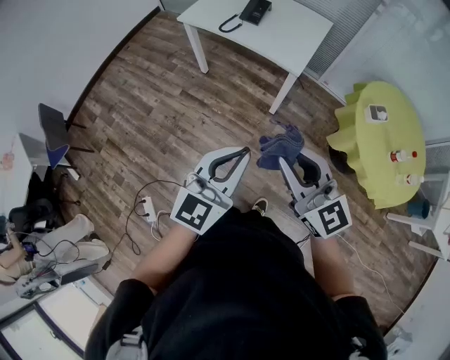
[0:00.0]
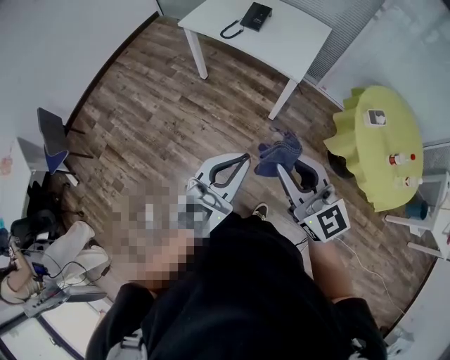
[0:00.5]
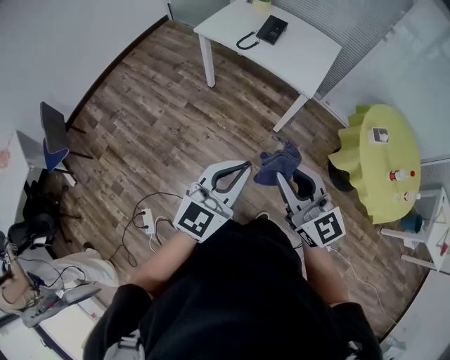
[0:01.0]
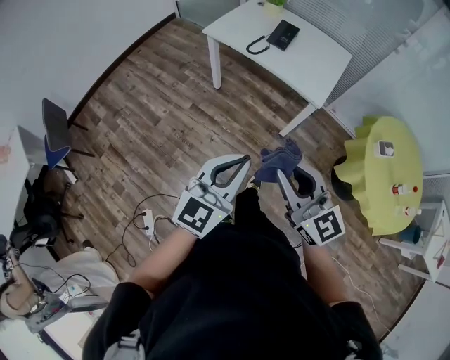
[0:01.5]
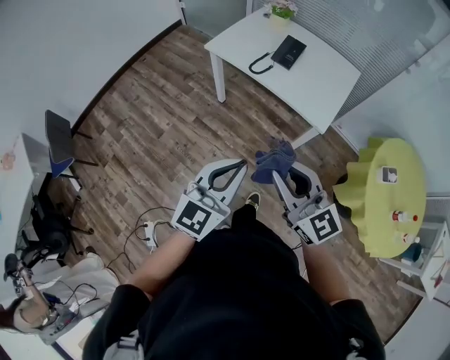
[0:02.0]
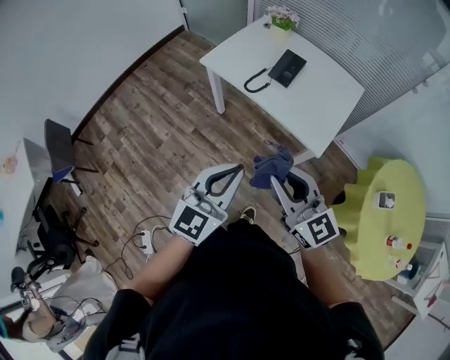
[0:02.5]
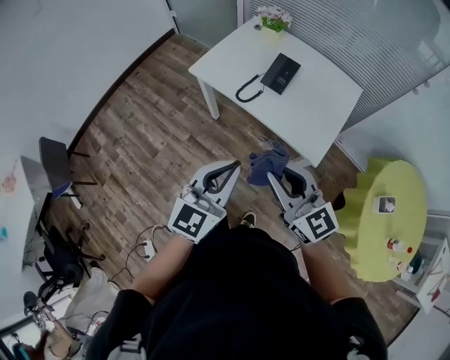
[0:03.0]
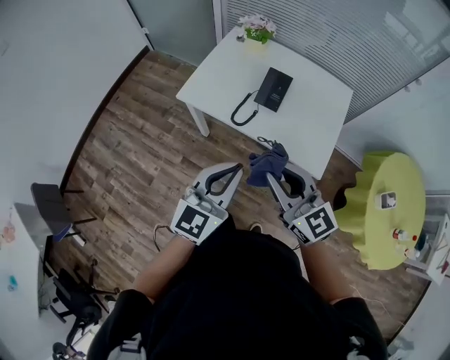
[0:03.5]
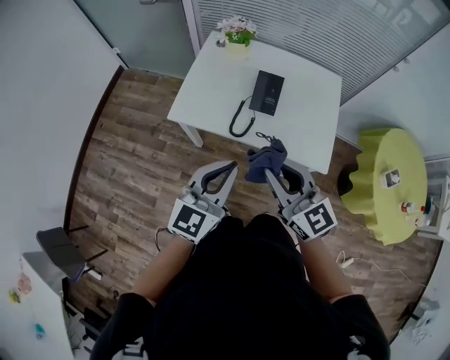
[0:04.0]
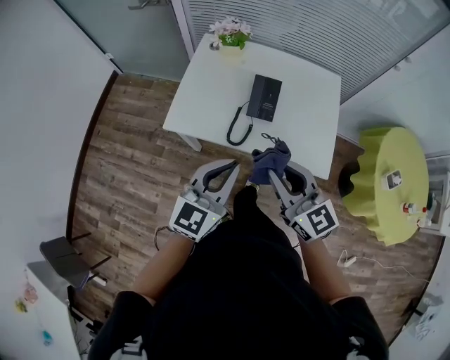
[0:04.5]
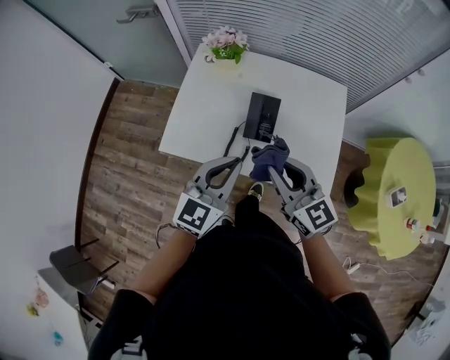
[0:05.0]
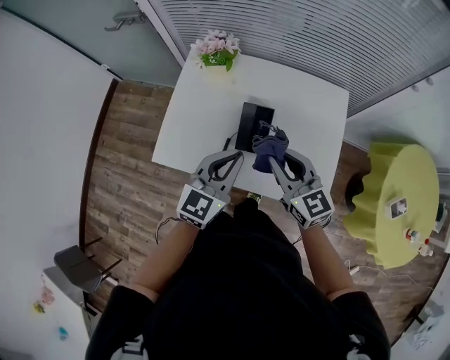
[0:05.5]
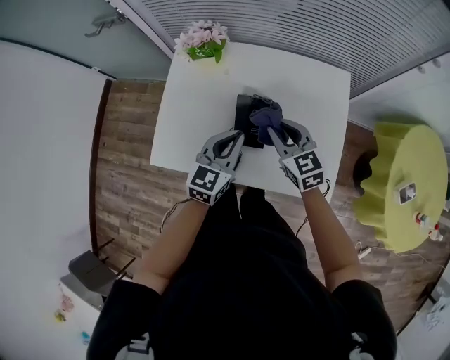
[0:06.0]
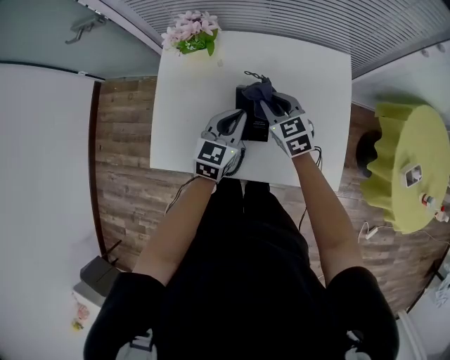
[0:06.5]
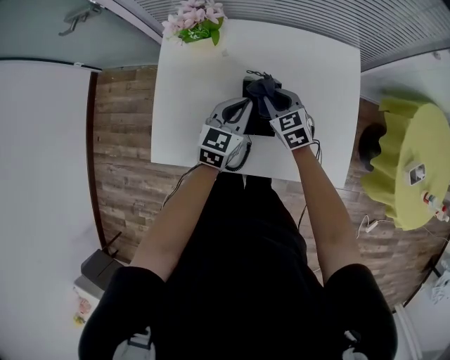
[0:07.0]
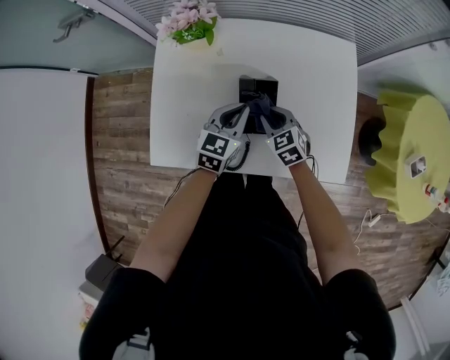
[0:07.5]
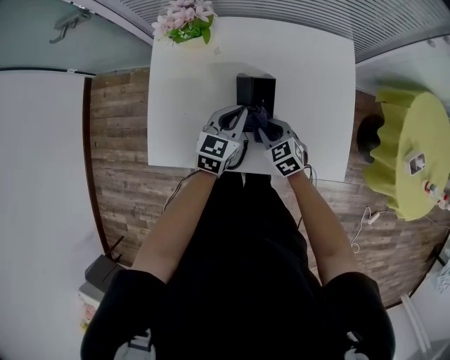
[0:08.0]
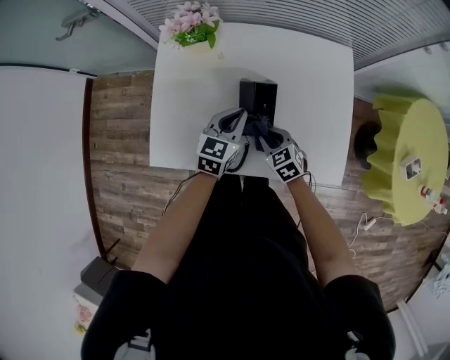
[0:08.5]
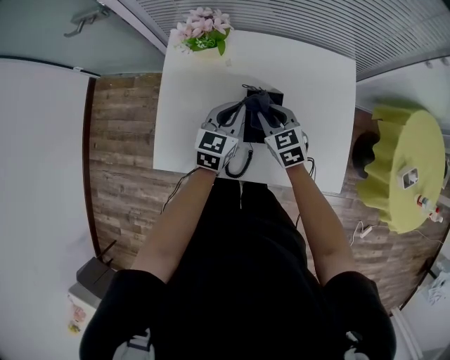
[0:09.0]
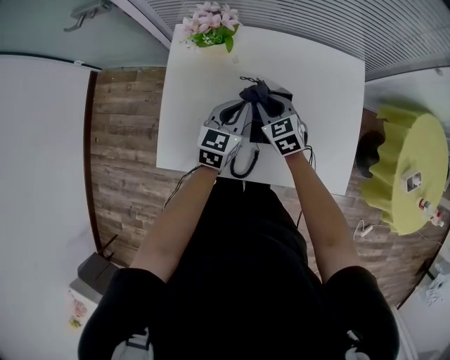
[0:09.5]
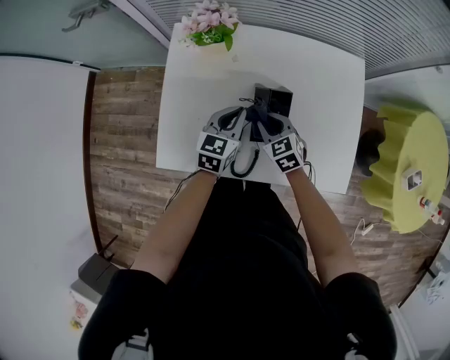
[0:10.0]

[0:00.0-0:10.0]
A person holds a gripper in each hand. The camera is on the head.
0:00.0 to 0:02.0: Both grippers travel together forward and to the left, approximately 20 cm.
0:02.0 to 0:04.0: Both grippers travel together forward, roughly 35 cm. The right gripper rotates about 20 degrees.
0:04.0 to 0:06.0: Both grippers move forward and downward, about 35 cm. The right gripper turns by about 20 degrees.
0:06.0 to 0:08.0: The right gripper shifts some 20 cm downward, and turns by approximately 20 degrees, while the left gripper goes roughly 10 cm downward.
0:08.0 to 0:10.0: The left gripper moves to the left, approximately 5 cm. The right gripper heads forward and to the left, covering some 10 cm.

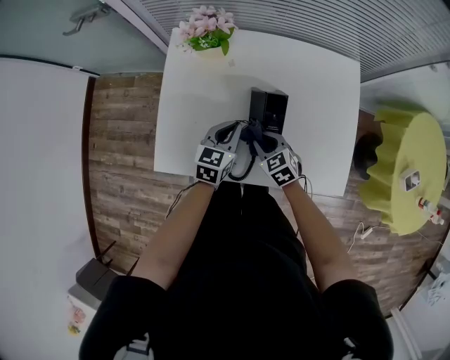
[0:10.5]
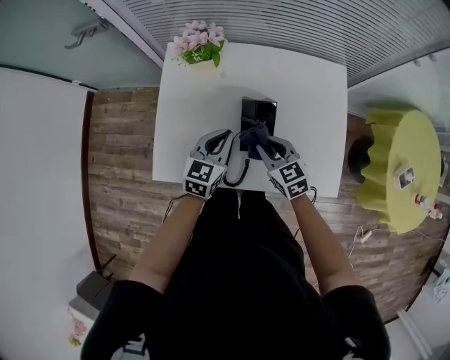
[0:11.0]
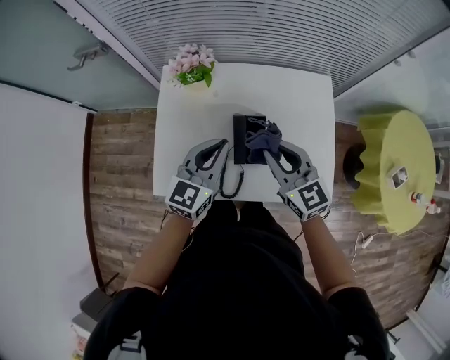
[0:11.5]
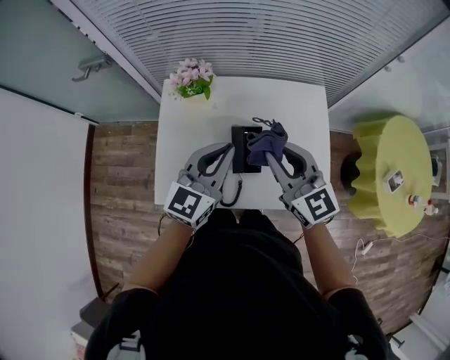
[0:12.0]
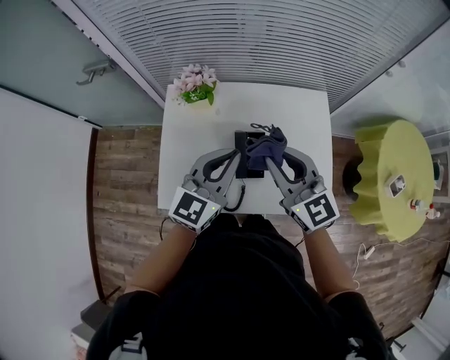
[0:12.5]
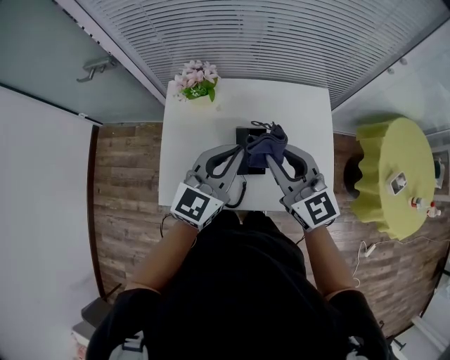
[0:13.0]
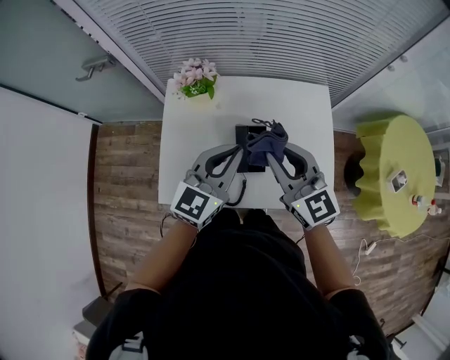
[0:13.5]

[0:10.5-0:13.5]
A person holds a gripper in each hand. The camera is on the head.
0:10.5 to 0:12.0: Both grippers travel together upward, some 30 cm. The left gripper turns by some 30 degrees, while the right gripper points its fingers some 40 degrees further upward.
0:12.0 to 0:13.5: The grippers move only a little.

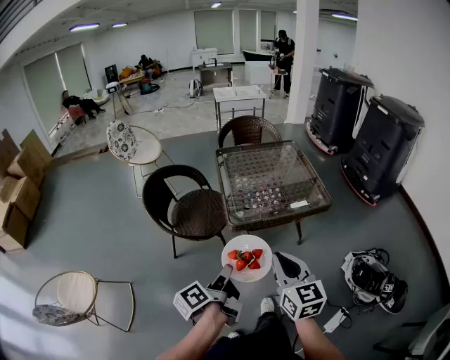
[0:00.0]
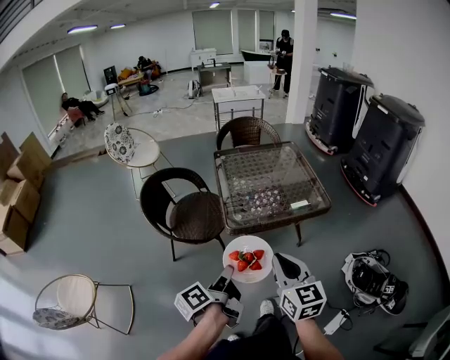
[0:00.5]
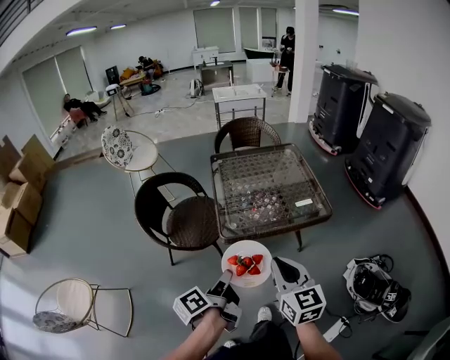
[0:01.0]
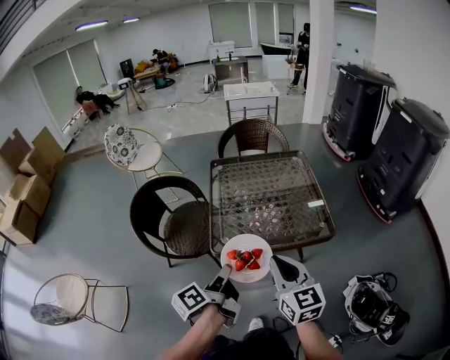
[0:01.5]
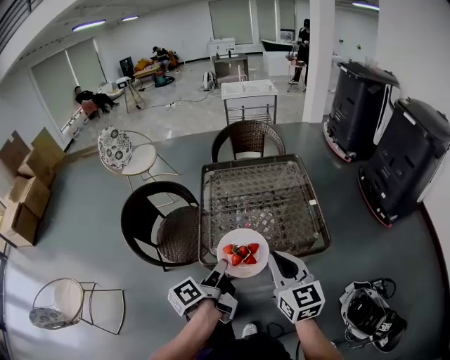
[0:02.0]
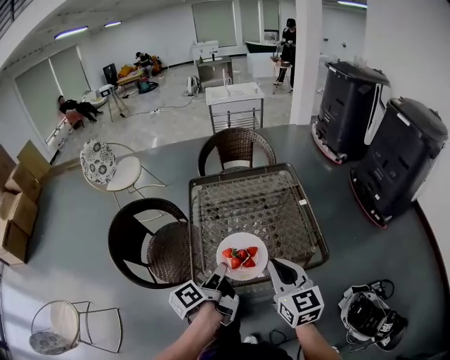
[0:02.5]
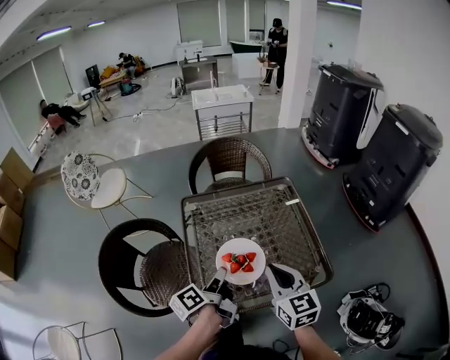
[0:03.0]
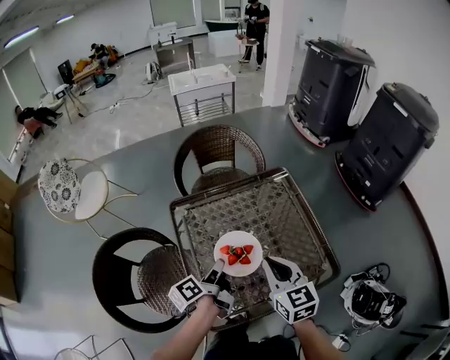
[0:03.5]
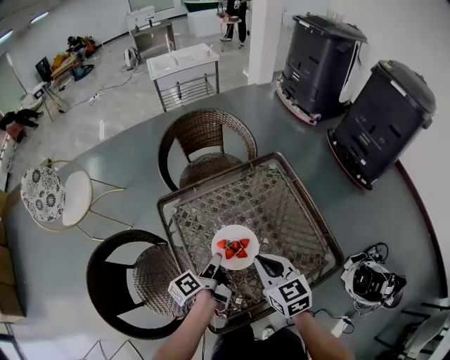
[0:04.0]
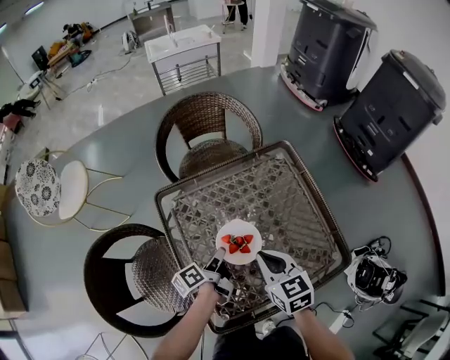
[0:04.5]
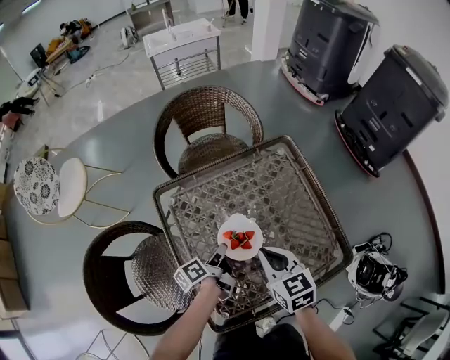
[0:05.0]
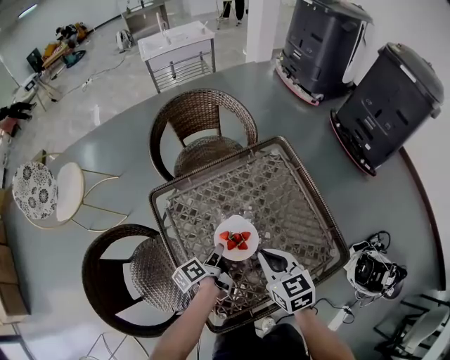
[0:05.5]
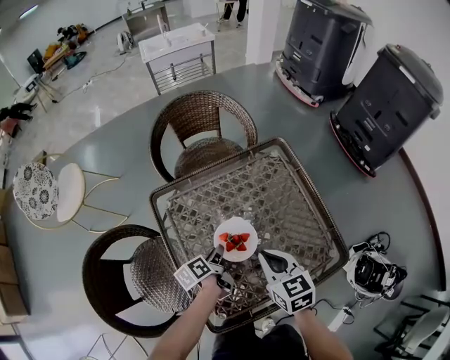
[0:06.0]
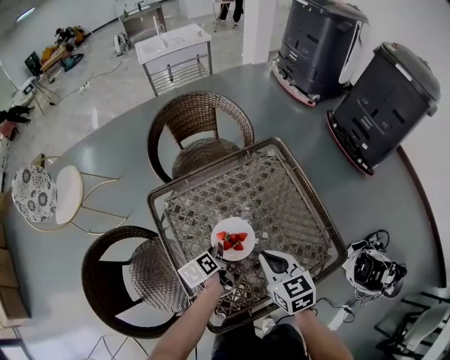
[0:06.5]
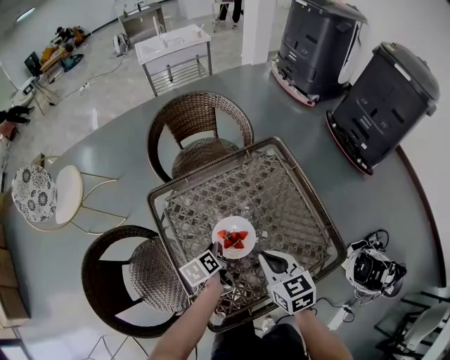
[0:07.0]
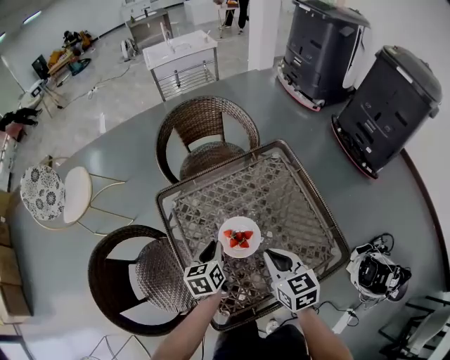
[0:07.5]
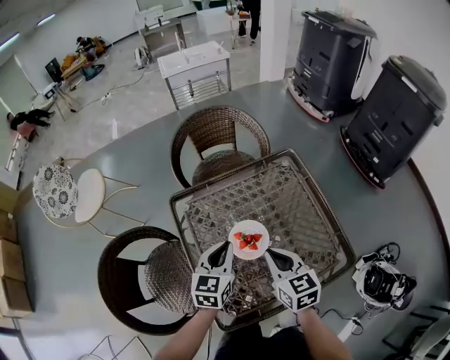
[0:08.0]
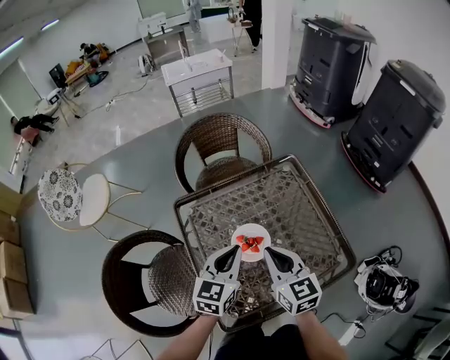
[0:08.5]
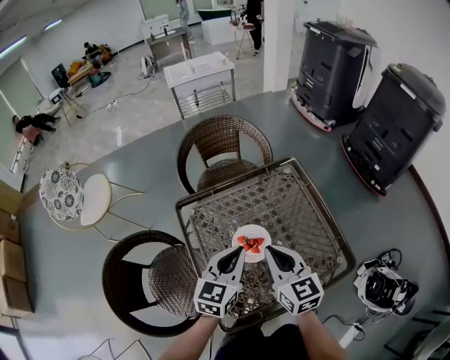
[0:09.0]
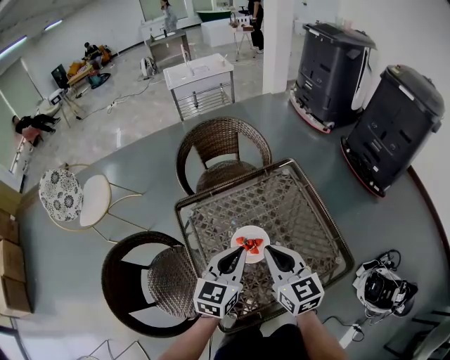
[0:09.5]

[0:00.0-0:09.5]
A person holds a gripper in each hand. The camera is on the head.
0:00.0 to 0:02.0: The grippers both shift forward and to the right by approximately 30 cm.
0:02.0 to 0:04.0: The grippers both shift forward and downward by some 35 cm. The left gripper swivels some 20 degrees. The right gripper swivels approximately 20 degrees.
0:04.0 to 0:05.5: The right gripper moves downward, approximately 5 cm, while the left gripper travels downward by about 10 cm.
0:05.5 to 0:07.5: The left gripper heads upward, covering some 5 cm, and twists some 50 degrees clockwise, seen from behind.
0:07.5 to 0:09.5: The right gripper moves upward, roughly 10 cm; the left gripper shifts approximately 15 cm upward, and turns by about 30 degrees.

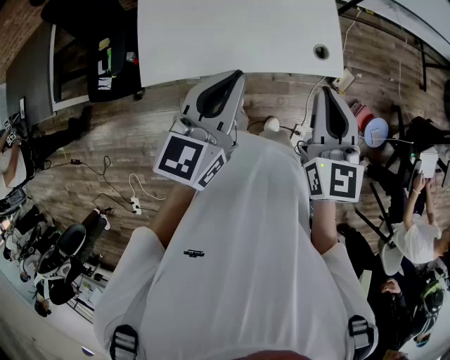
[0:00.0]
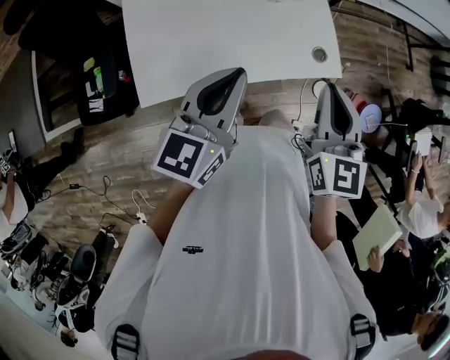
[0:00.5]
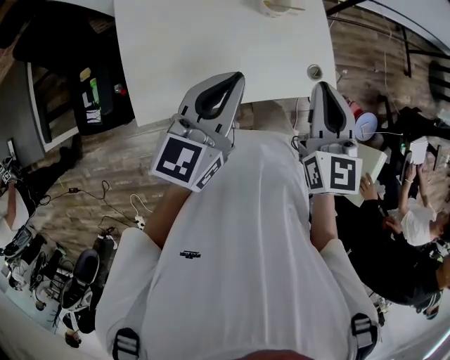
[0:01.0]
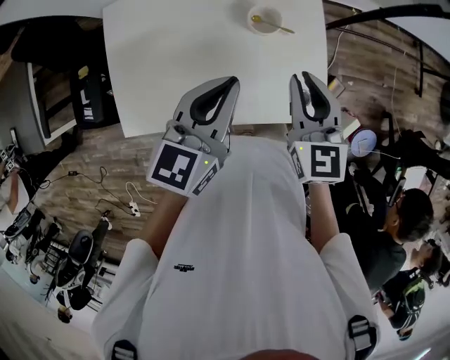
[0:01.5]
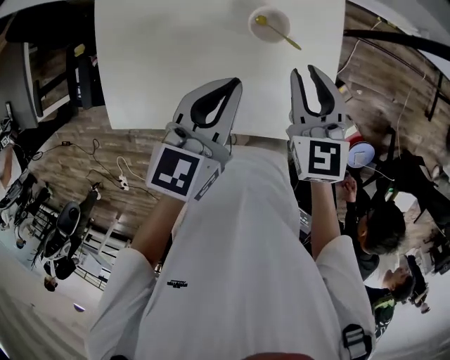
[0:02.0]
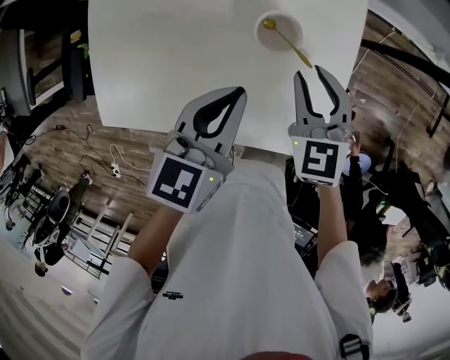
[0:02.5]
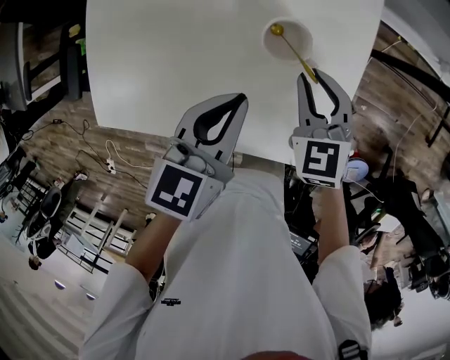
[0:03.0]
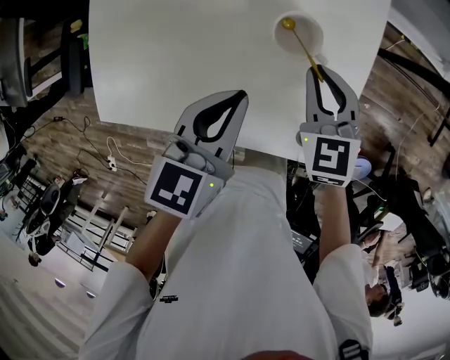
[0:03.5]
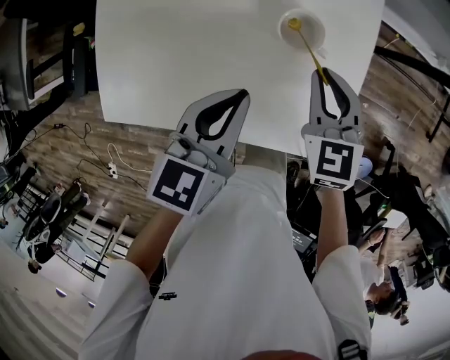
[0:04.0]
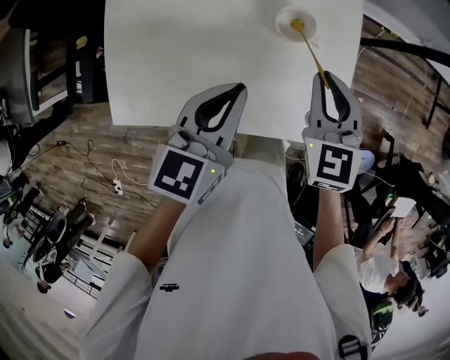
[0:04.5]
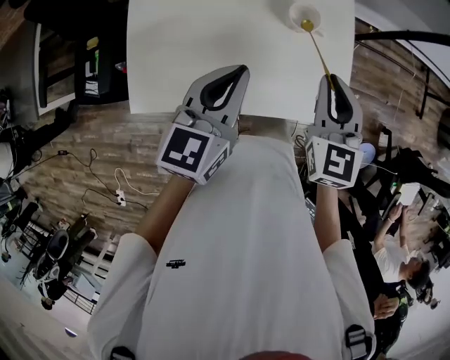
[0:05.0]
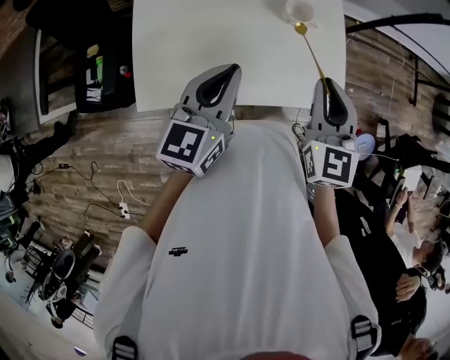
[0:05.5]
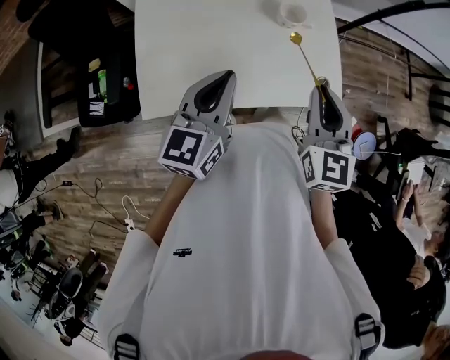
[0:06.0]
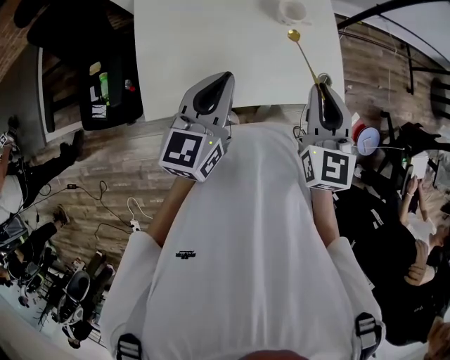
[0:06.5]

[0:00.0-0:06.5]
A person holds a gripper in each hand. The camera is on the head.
0:00.0 to 0:02.0: Both grippers travel together forward and downward, approximately 35 cm. The right gripper changes its angle by roughly 20 degrees.
0:02.0 to 0:04.5: The right gripper moves about 10 cm downward and comes back. The left gripper travels downward and back again, approximately 10 cm each way.
0:04.5 to 0:06.5: The left gripper shifts some 20 cm backward, to the left and upward, while the right gripper shifts some 25 cm backward and upward, and turns by approximately 20 degrees.
